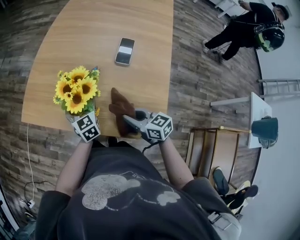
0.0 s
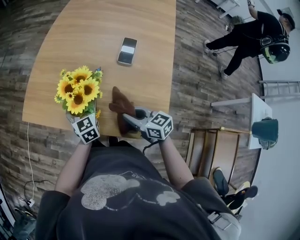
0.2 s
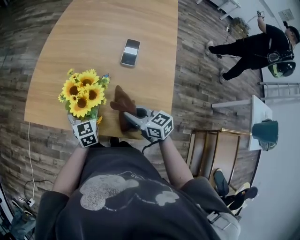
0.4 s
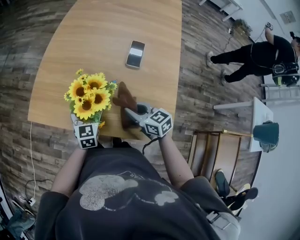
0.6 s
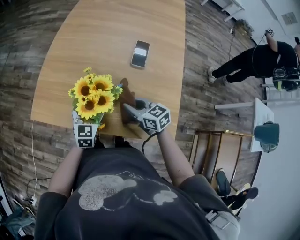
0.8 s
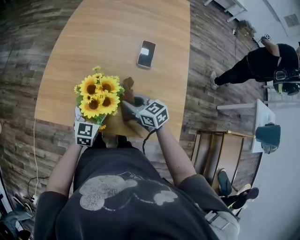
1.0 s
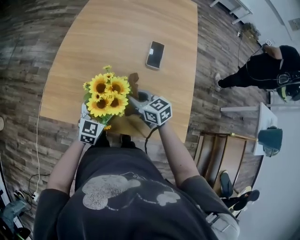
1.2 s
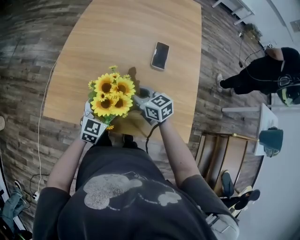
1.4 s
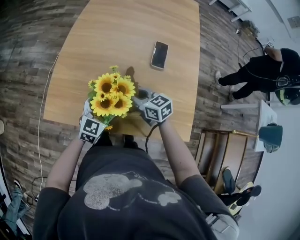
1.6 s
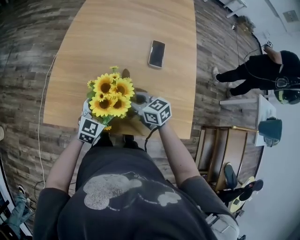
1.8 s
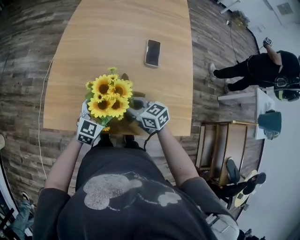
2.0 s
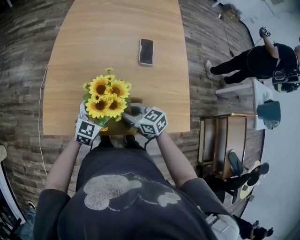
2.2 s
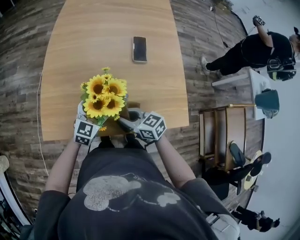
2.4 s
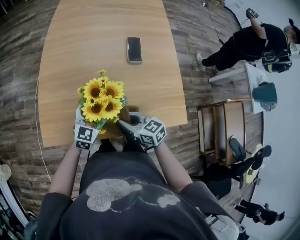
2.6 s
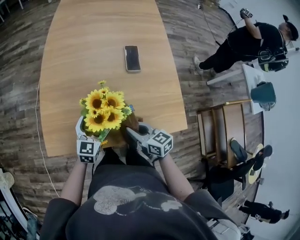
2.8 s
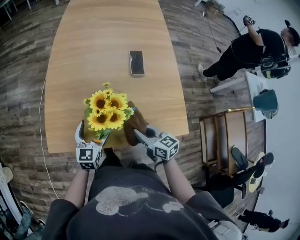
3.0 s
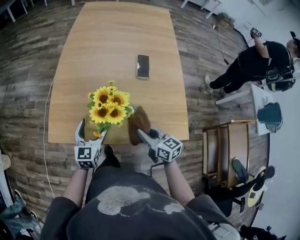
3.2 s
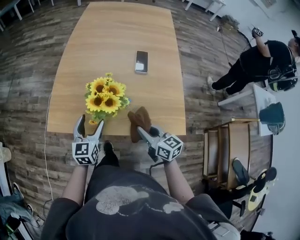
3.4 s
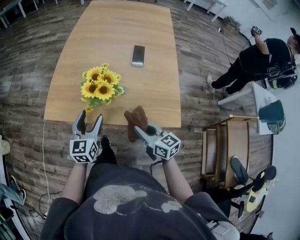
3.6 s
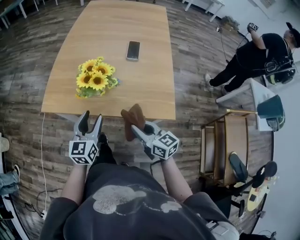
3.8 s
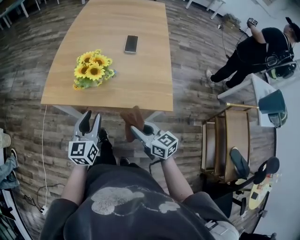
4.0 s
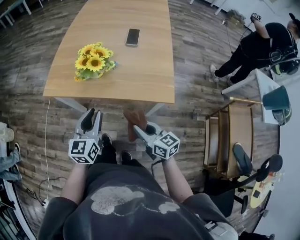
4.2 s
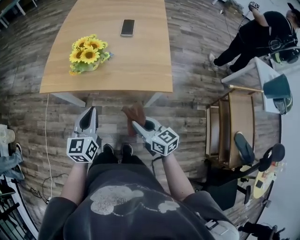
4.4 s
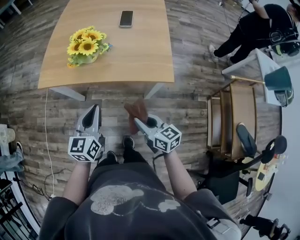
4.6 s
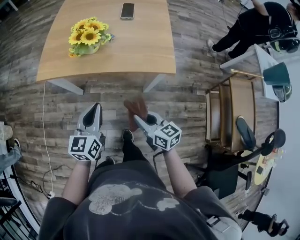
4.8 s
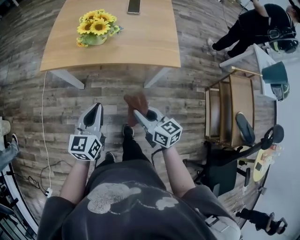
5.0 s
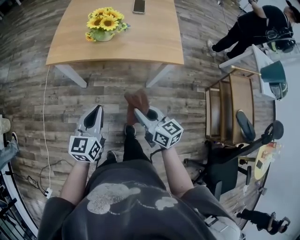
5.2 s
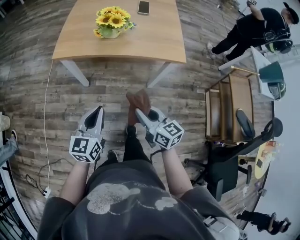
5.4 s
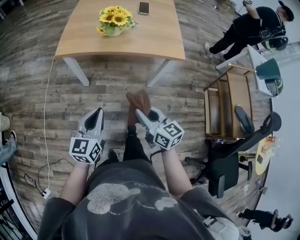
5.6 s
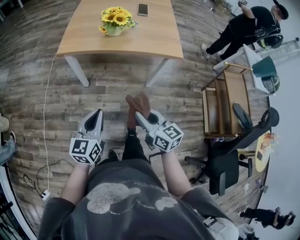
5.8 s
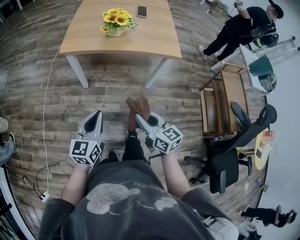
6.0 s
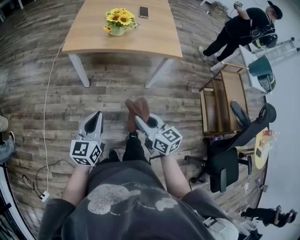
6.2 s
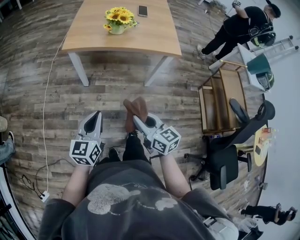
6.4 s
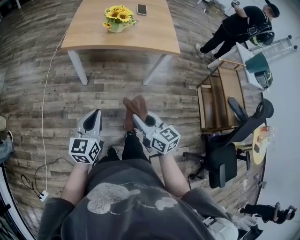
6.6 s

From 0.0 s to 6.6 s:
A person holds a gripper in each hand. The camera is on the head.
From 0.0 s to 1.6 s: The left gripper swivels about 50 degrees, while the right gripper ends up roughly 20 cm from where it was.
From 1.6 s to 3.2 s: The left gripper goes roughly 5 cm to the left; the right gripper moves backward and to the right, about 15 cm, and changes its angle by about 20 degrees.
From 3.2 s to 5.0 s: Both grippers travel together backward, roughly 30 cm. The left gripper closes.
From 5.0 s to 6.6 s: The two grippers go some 20 cm backward and to the left.

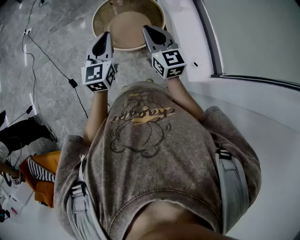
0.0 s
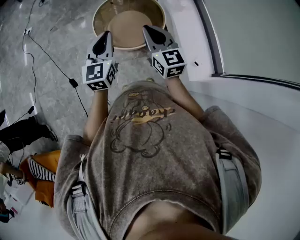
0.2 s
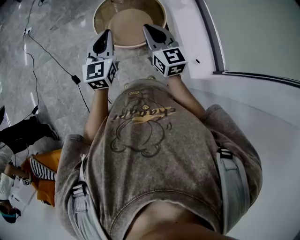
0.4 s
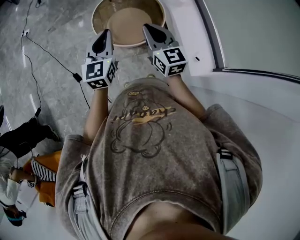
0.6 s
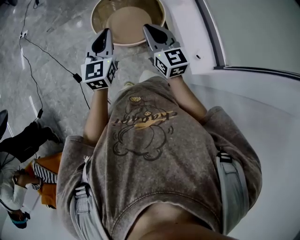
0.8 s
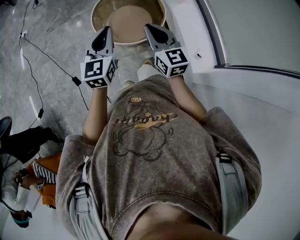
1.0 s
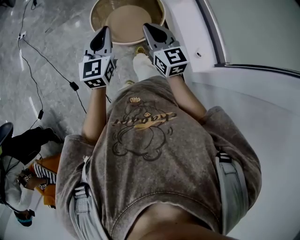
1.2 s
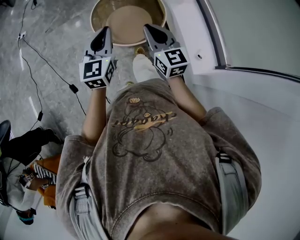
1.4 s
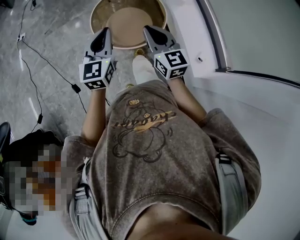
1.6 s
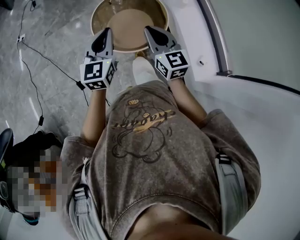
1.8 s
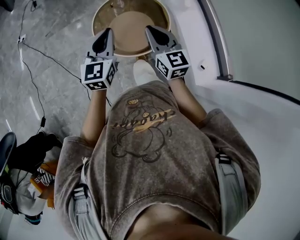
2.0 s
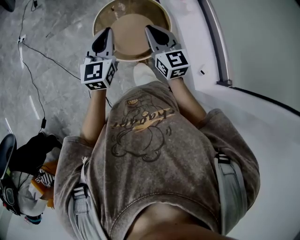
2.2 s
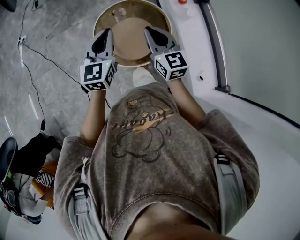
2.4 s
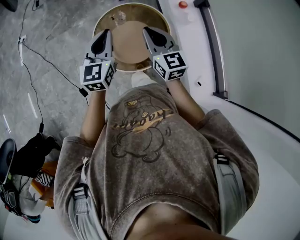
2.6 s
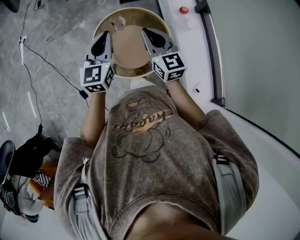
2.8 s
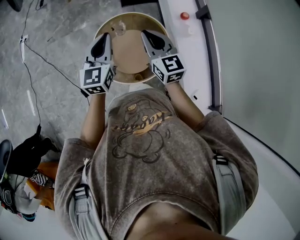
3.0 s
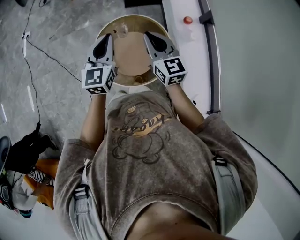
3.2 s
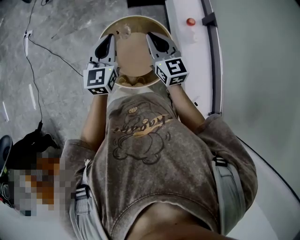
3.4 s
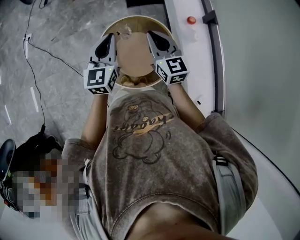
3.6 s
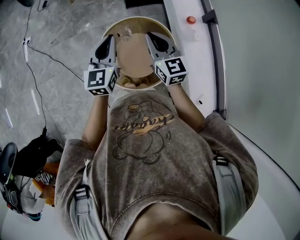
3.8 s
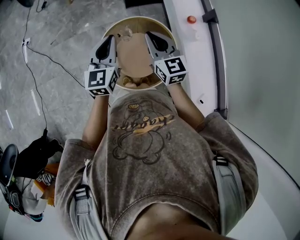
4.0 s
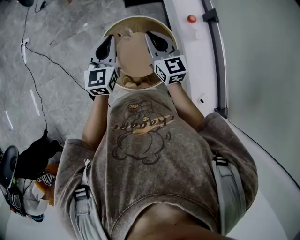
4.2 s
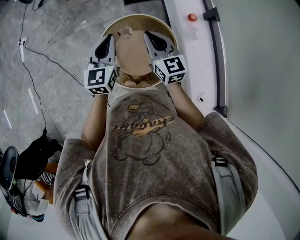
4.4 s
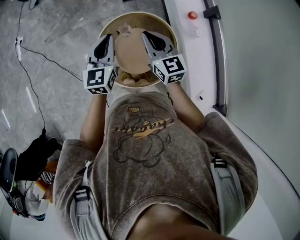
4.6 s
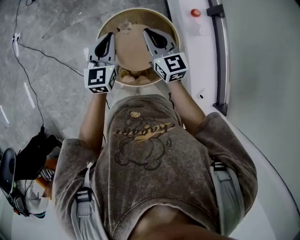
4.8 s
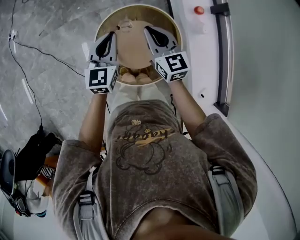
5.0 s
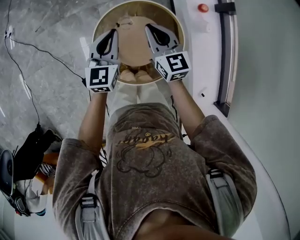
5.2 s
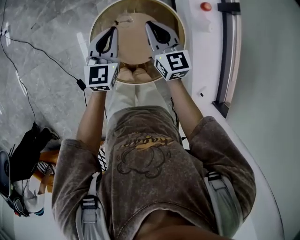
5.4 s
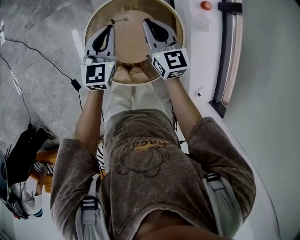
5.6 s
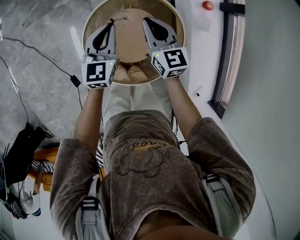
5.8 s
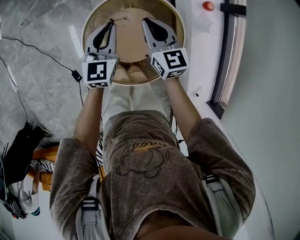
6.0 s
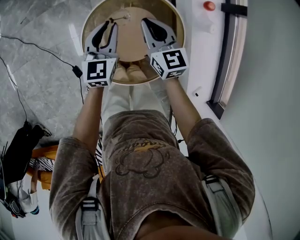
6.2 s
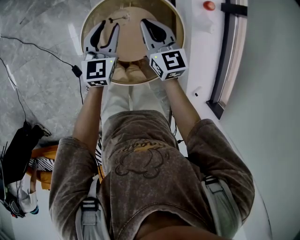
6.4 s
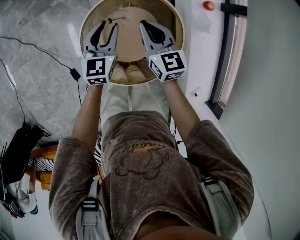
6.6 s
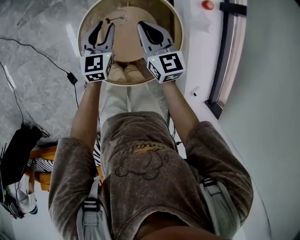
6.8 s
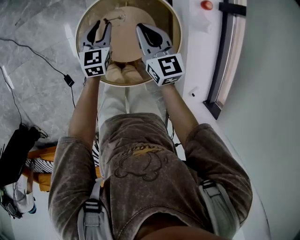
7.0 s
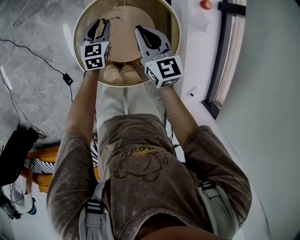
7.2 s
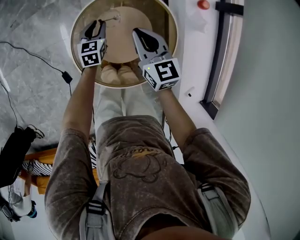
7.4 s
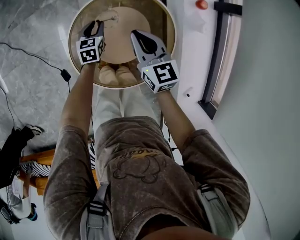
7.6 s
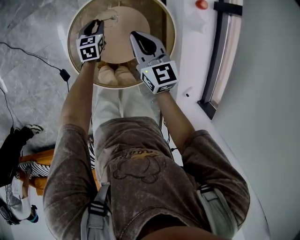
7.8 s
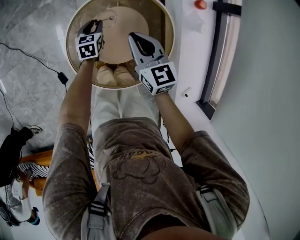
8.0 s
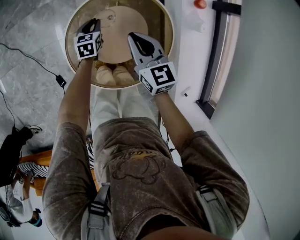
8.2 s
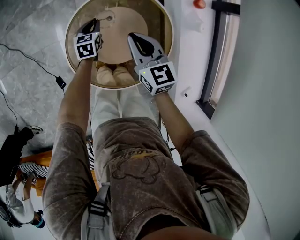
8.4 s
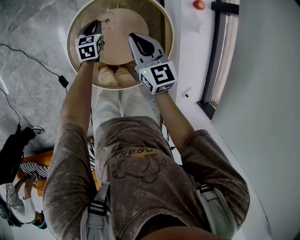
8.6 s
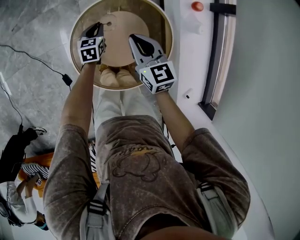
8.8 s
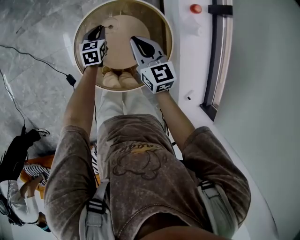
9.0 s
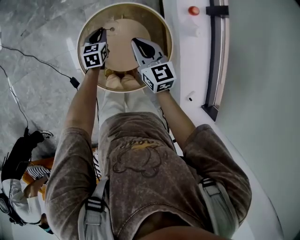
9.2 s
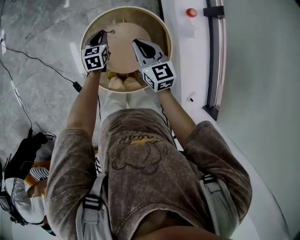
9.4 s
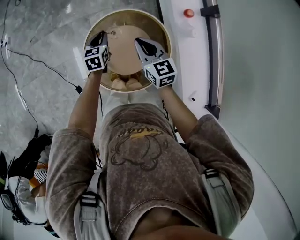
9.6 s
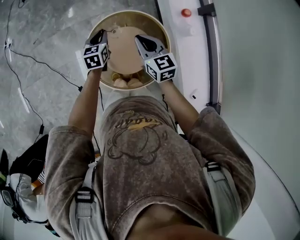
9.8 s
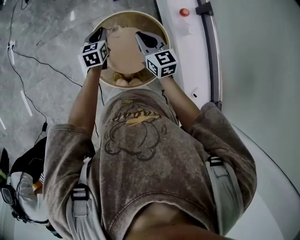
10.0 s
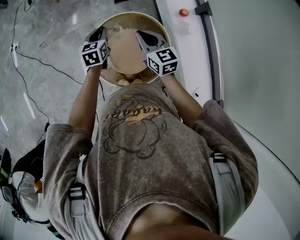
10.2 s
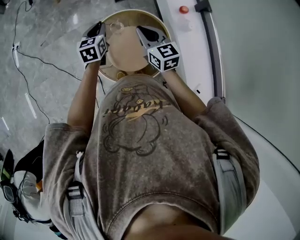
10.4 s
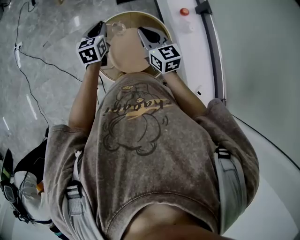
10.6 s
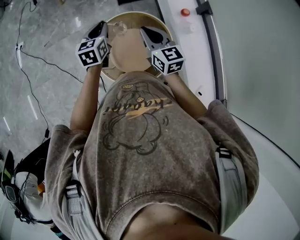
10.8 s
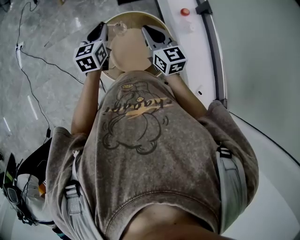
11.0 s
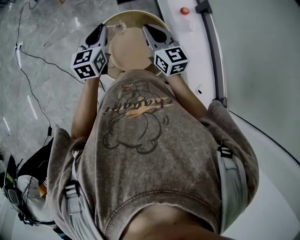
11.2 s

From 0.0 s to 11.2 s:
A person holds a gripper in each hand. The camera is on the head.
From 0.0 s to 1.6 s: The left gripper shifts approximately 5 cm forward. The right gripper is displaced downward by about 5 cm.
From 1.6 s to 3.2 s: Both grippers move forward, approximately 30 cm.
From 3.2 s to 4.8 s: The grippers both shift downward and forward by some 10 cm.
From 4.8 s to 6.4 s: Both grippers travel together downward, about 15 cm. The left gripper opens.
From 6.4 s to 8.0 s: The left gripper heads downward, covering some 20 cm, and turns by roughly 30 degrees.
From 8.0 s to 9.6 s: The left gripper goes about 20 cm upward; the right gripper is displaced upward by about 10 cm.
From 9.6 s to 11.2 s: The left gripper moves upward, approximately 25 cm, while the right gripper shifts some 15 cm upward and backward.

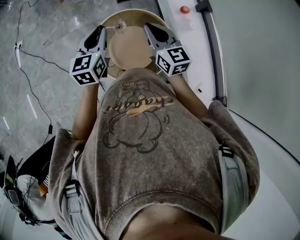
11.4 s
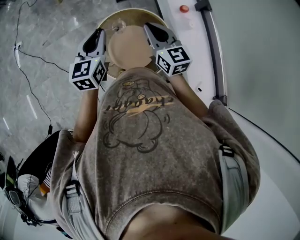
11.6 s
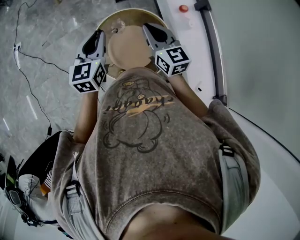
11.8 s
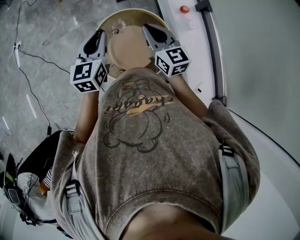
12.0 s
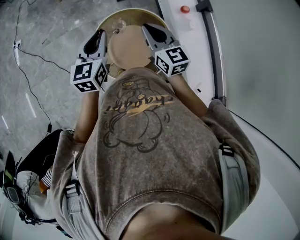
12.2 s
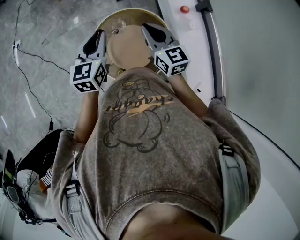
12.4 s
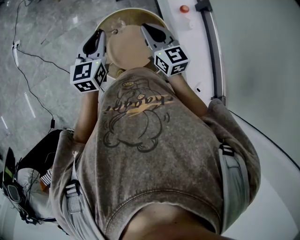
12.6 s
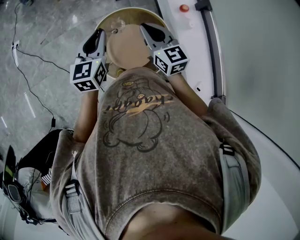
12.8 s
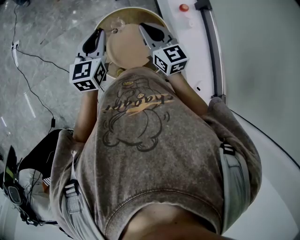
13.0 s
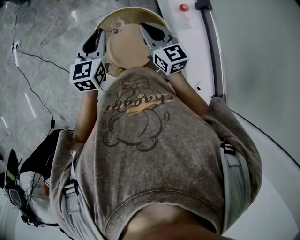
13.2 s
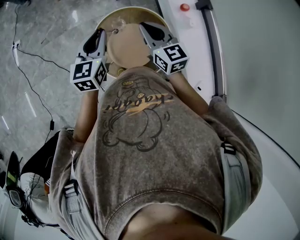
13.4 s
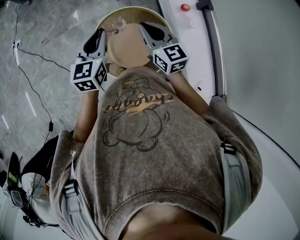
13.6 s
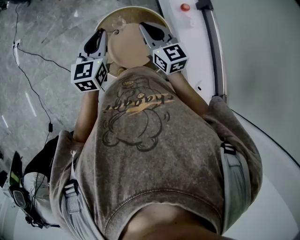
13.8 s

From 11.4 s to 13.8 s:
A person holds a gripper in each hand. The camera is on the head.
From 11.4 s to 13.8 s: The grippers stay close to where they were, moving slightly.

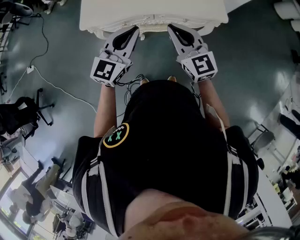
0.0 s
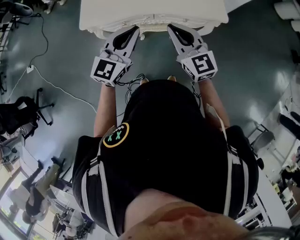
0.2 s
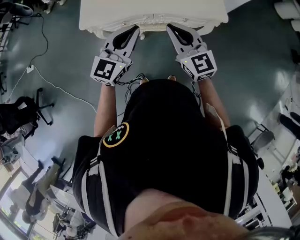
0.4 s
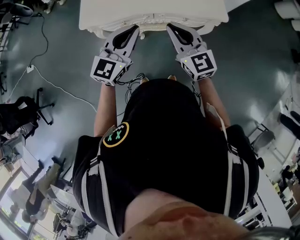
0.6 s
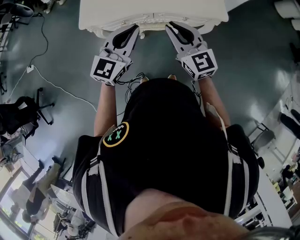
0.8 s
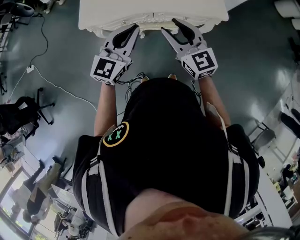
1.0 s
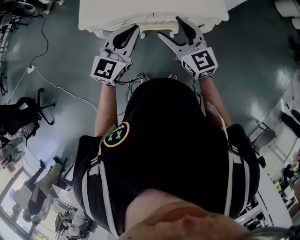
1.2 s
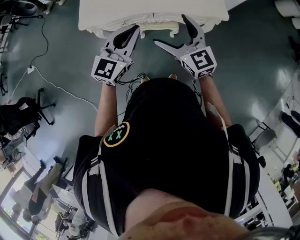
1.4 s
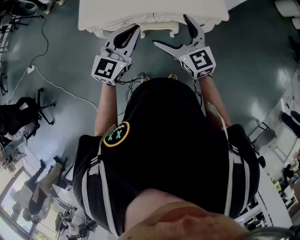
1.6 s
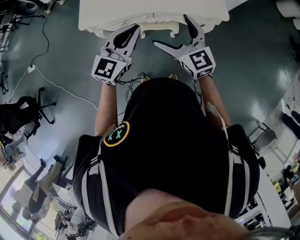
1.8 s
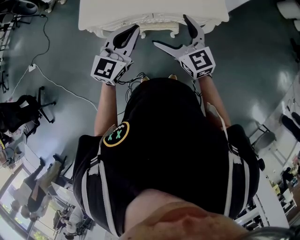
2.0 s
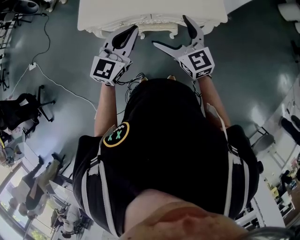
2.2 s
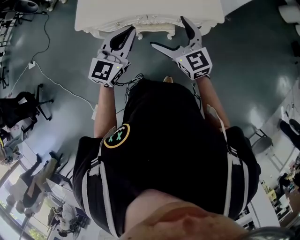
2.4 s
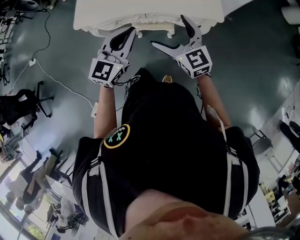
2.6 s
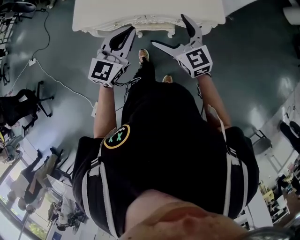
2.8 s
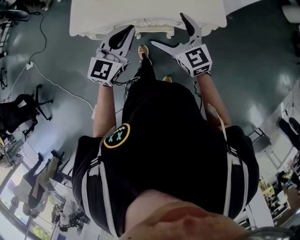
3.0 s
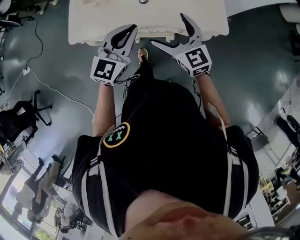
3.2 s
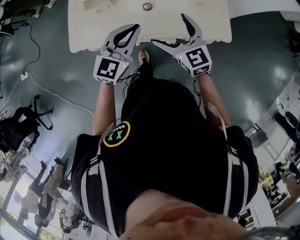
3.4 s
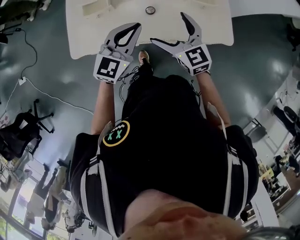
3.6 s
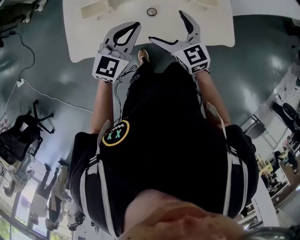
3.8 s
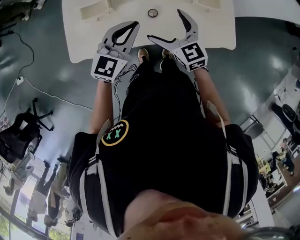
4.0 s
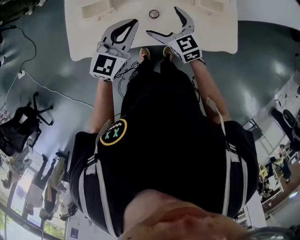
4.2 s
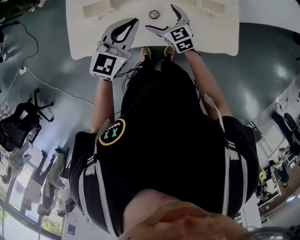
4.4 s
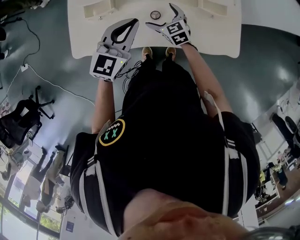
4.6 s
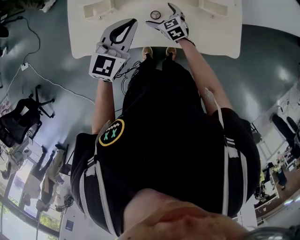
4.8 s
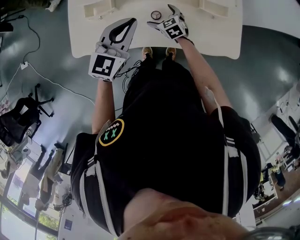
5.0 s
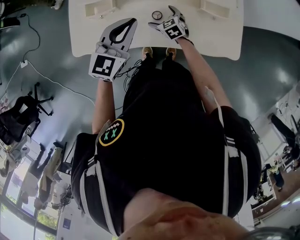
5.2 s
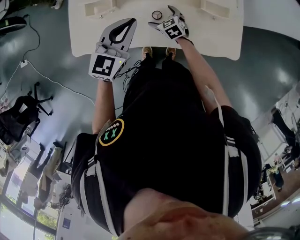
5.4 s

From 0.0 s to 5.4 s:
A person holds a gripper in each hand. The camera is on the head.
From 0.0 s to 1.4 s: The right gripper opens its fingers.
From 1.4 s to 2.8 s: The grippers both shift to the right by some 10 cm.
From 2.8 s to 4.0 s: The right gripper is displaced forward and to the left by about 35 cm, while the left gripper shifts approximately 30 cm forward.
From 4.0 s to 5.4 s: The right gripper moves downward and forward, approximately 25 cm, and swivels about 20 degrees.
